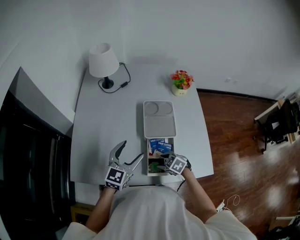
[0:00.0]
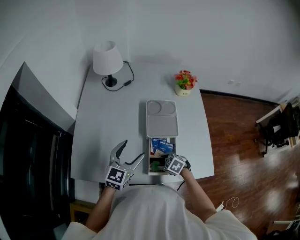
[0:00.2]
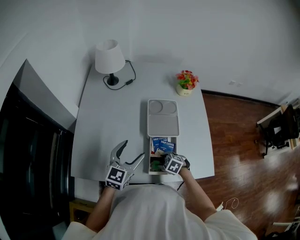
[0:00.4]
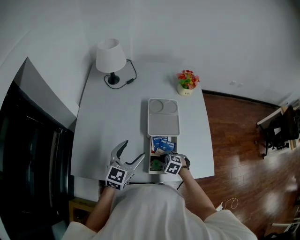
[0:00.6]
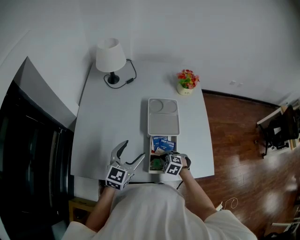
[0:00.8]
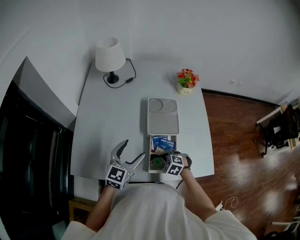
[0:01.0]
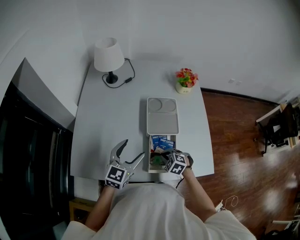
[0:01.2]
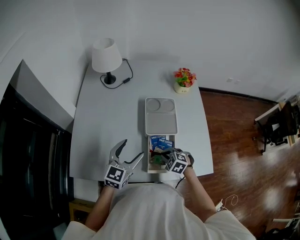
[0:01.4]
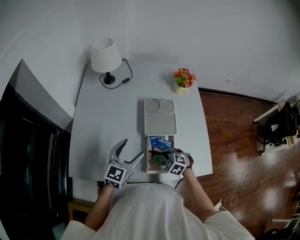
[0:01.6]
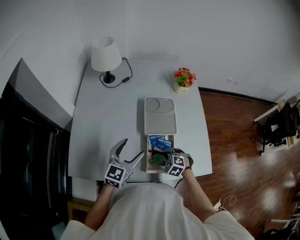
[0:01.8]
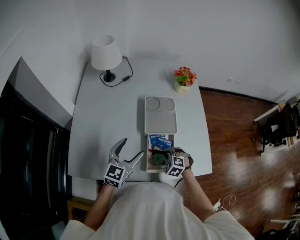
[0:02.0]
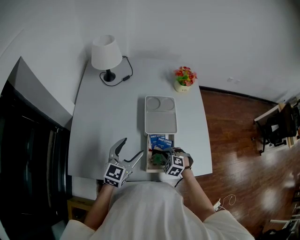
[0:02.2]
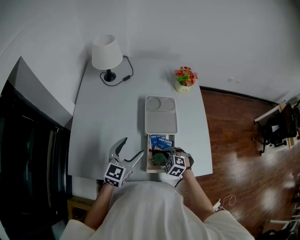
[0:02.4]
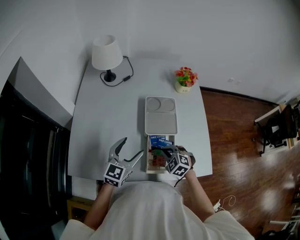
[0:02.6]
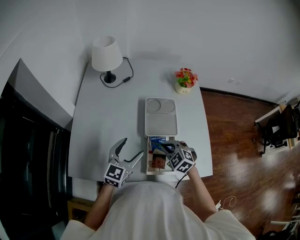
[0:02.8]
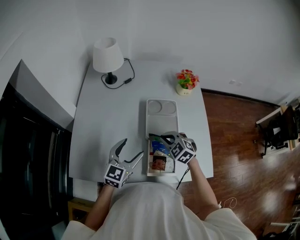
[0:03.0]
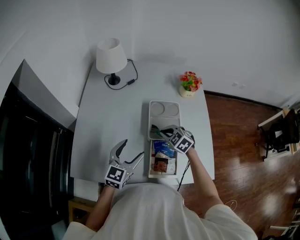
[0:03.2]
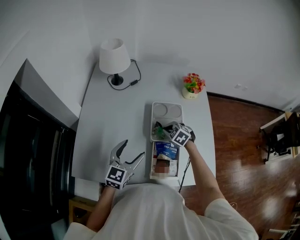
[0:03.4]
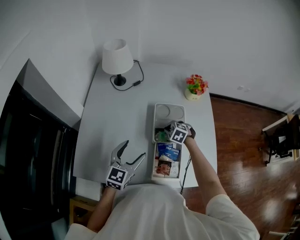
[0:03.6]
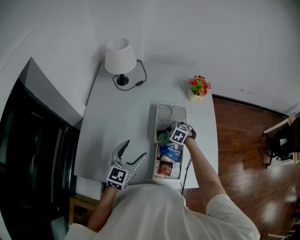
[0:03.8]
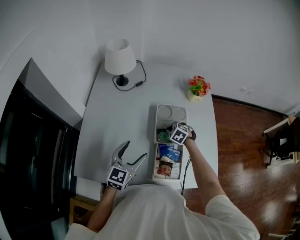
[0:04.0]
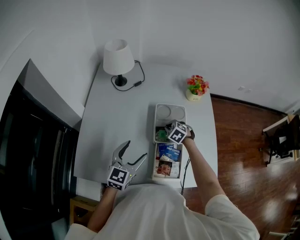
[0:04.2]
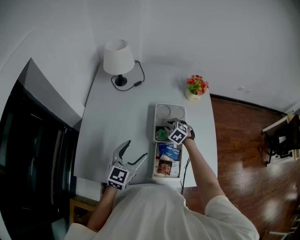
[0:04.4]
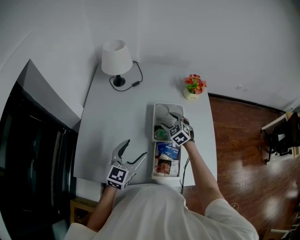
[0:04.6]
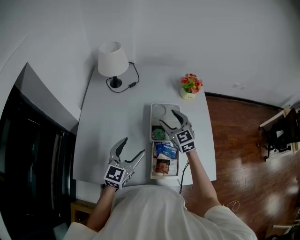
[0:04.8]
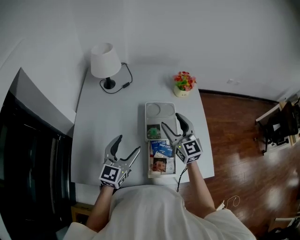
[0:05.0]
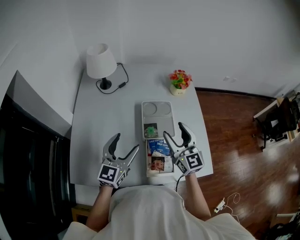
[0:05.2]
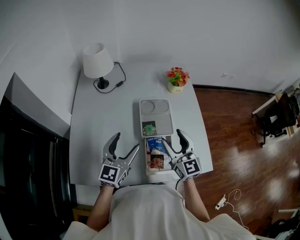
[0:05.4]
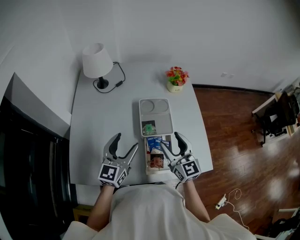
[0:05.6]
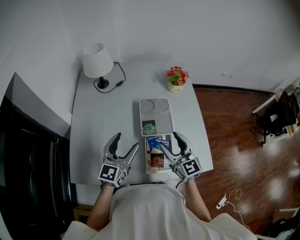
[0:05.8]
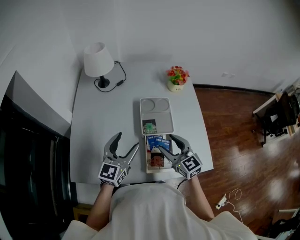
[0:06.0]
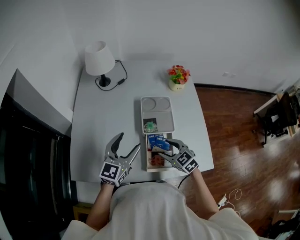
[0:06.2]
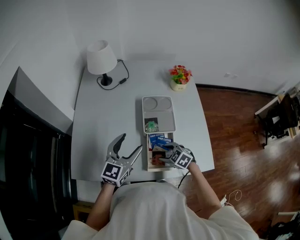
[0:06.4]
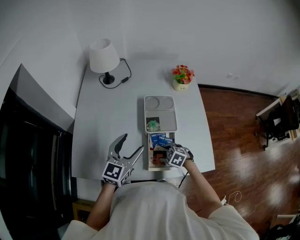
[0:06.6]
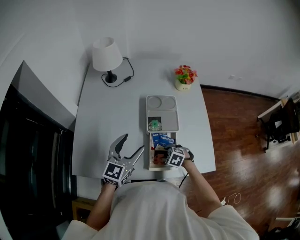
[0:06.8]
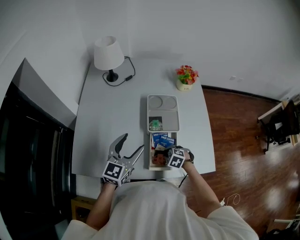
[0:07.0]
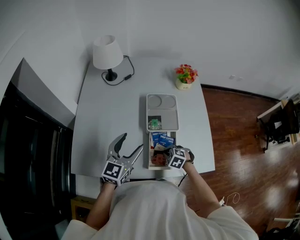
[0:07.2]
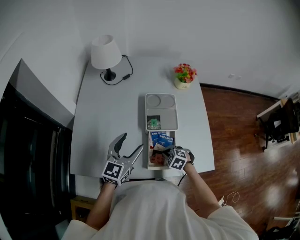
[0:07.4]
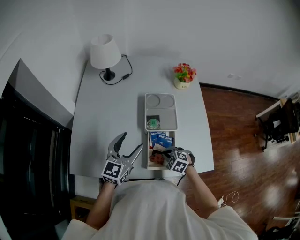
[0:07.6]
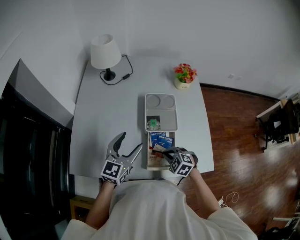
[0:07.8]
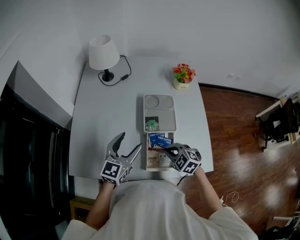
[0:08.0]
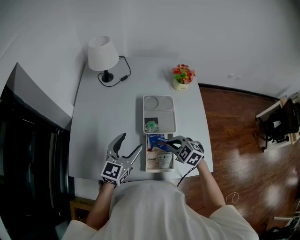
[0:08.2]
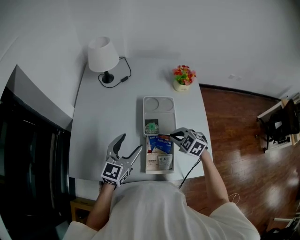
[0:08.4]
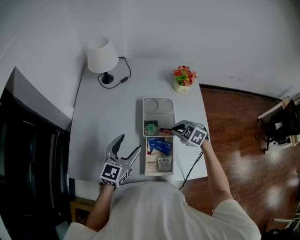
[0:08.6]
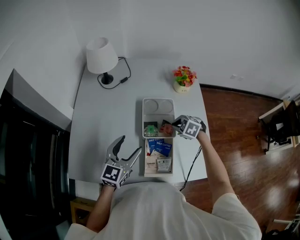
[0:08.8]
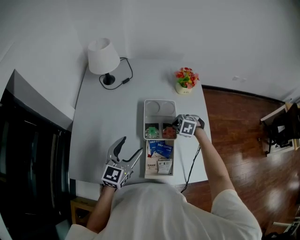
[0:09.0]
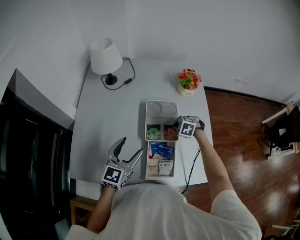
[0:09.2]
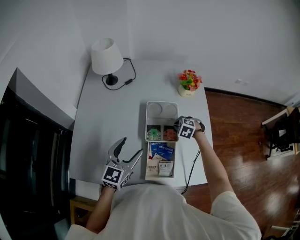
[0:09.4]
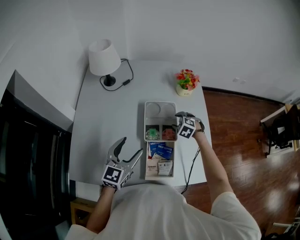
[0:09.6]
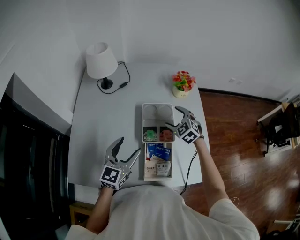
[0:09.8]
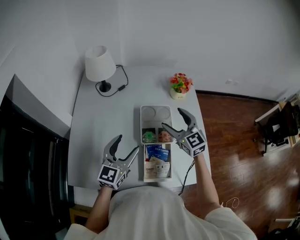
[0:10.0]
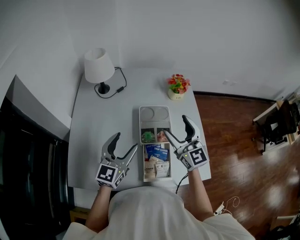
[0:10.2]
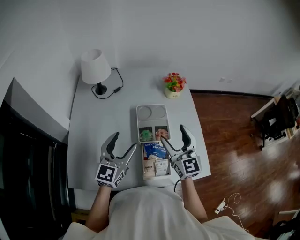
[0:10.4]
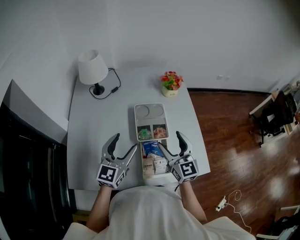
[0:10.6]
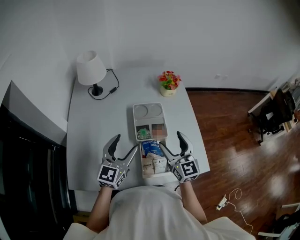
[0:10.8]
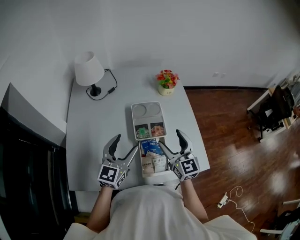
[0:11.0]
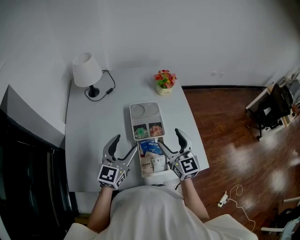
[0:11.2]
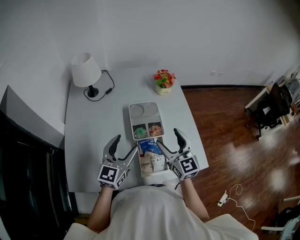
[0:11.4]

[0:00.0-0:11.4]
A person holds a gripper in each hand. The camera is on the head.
0:00.0 to 0:01.4: The right gripper closes up.
0:01.4 to 0:02.8: The right gripper travels upward by approximately 10 cm.
0:02.8 to 0:04.2: The right gripper goes about 20 cm forward and downward.
0:04.2 to 0:05.6: The left gripper shifts about 5 cm upward. The right gripper goes approximately 30 cm upward and backward, tips its fingers upward by some 60 degrees, and opens.
0:05.6 to 0:07.2: The right gripper heads downward, covering about 25 cm, angles its fingers downward, by roughly 70 degrees, and closes.
0:07.2 to 0:08.6: The right gripper goes approximately 20 cm upward, forward and to the right.
0:08.6 to 0:10.0: The right gripper shifts approximately 15 cm upward, tips its fingers upward by approximately 50 degrees, and opens its fingers.
0:10.0 to 0:11.4: The right gripper is displaced backward by approximately 15 cm.

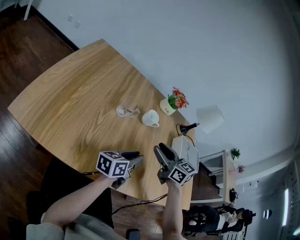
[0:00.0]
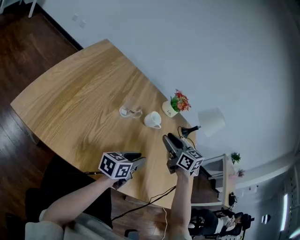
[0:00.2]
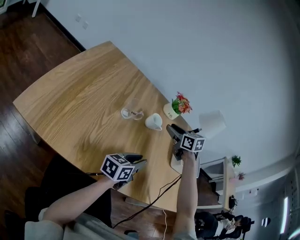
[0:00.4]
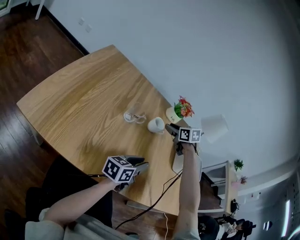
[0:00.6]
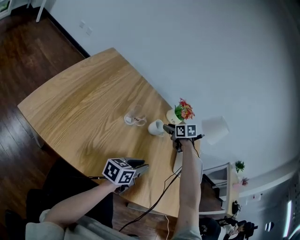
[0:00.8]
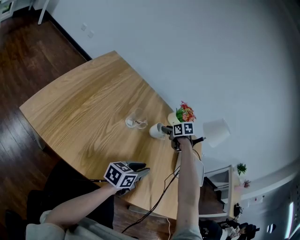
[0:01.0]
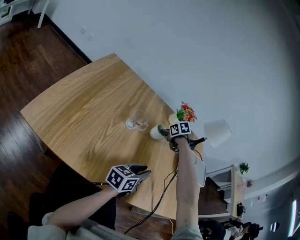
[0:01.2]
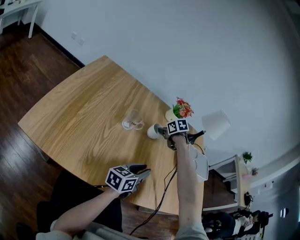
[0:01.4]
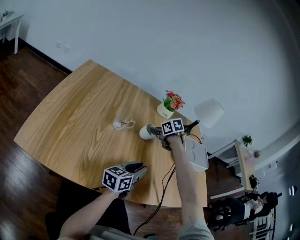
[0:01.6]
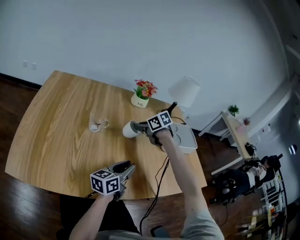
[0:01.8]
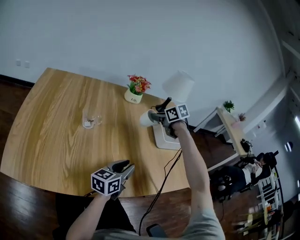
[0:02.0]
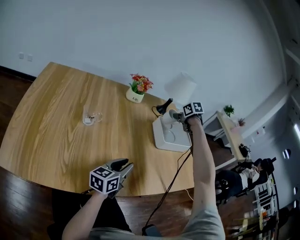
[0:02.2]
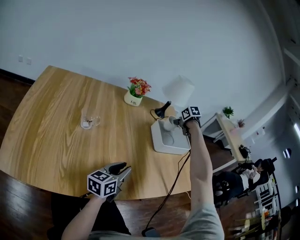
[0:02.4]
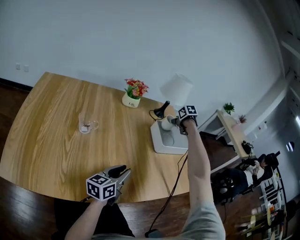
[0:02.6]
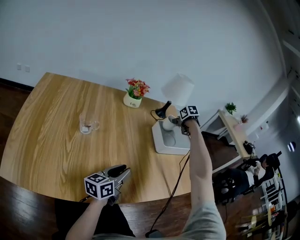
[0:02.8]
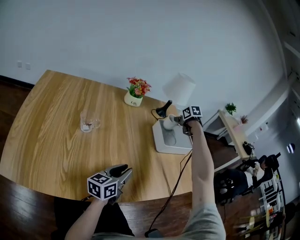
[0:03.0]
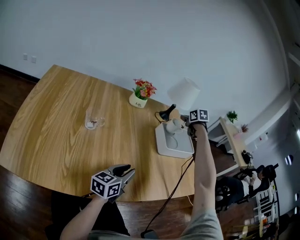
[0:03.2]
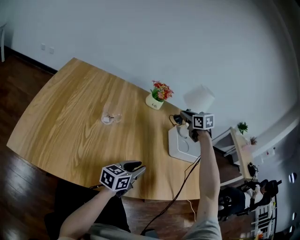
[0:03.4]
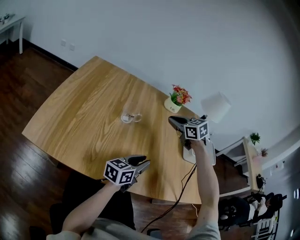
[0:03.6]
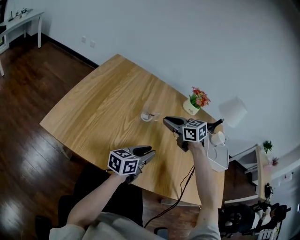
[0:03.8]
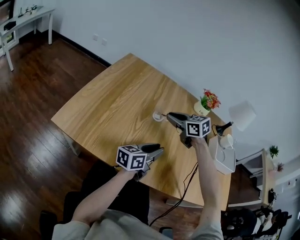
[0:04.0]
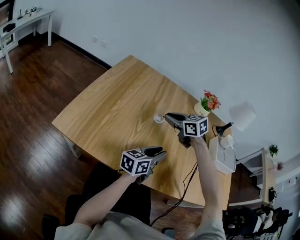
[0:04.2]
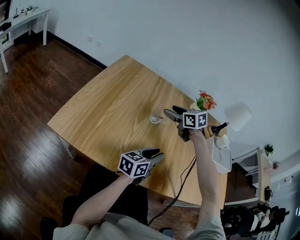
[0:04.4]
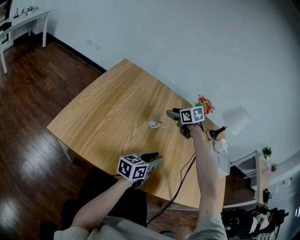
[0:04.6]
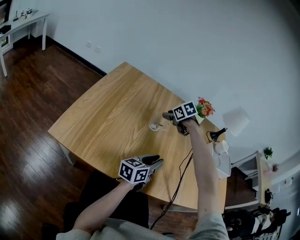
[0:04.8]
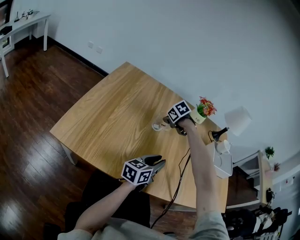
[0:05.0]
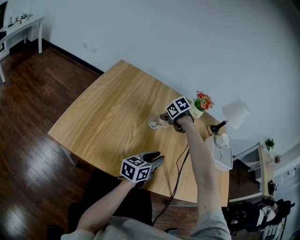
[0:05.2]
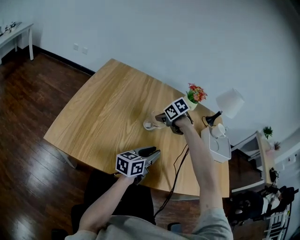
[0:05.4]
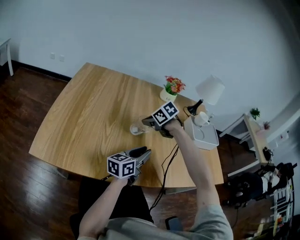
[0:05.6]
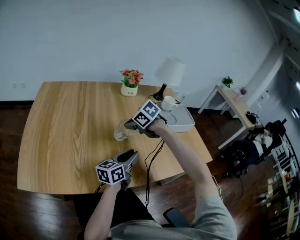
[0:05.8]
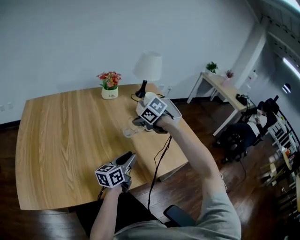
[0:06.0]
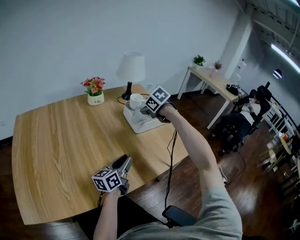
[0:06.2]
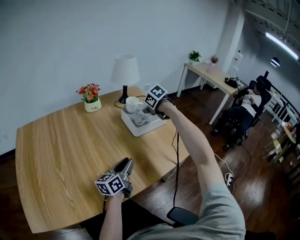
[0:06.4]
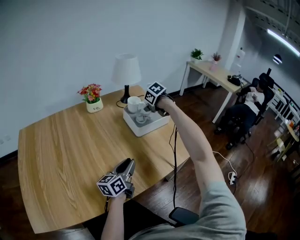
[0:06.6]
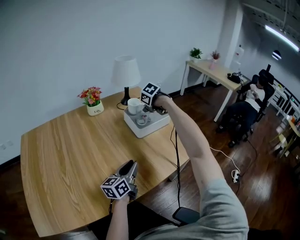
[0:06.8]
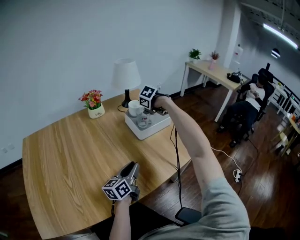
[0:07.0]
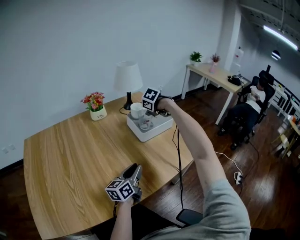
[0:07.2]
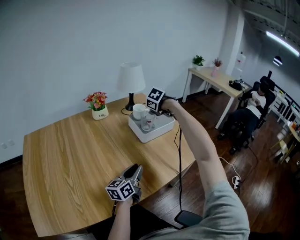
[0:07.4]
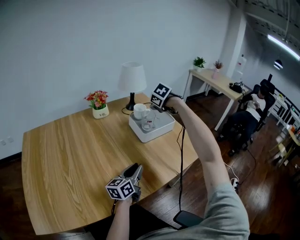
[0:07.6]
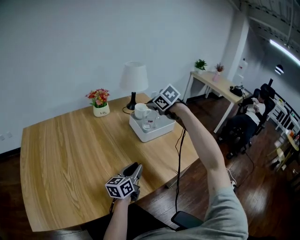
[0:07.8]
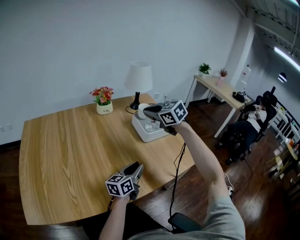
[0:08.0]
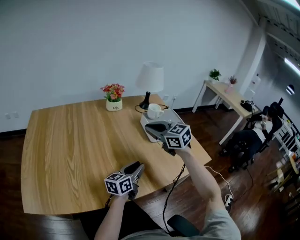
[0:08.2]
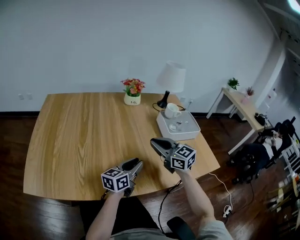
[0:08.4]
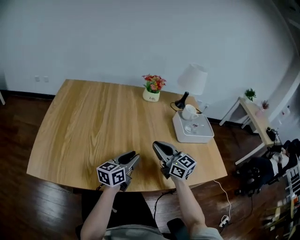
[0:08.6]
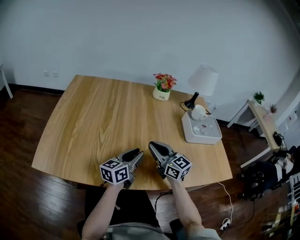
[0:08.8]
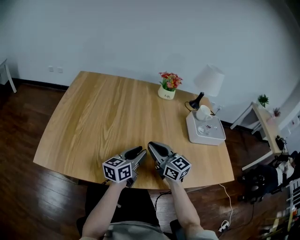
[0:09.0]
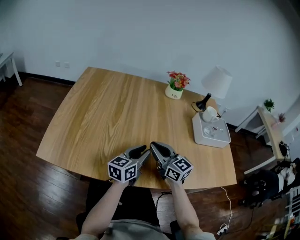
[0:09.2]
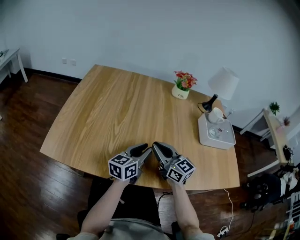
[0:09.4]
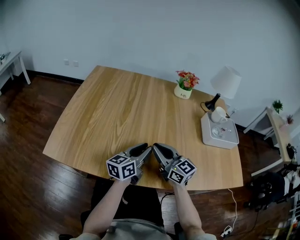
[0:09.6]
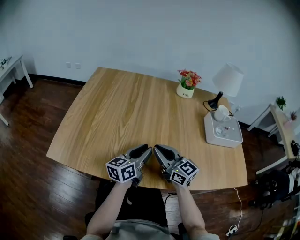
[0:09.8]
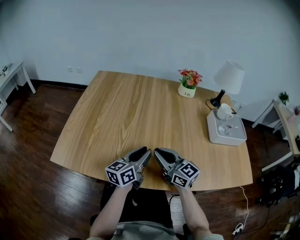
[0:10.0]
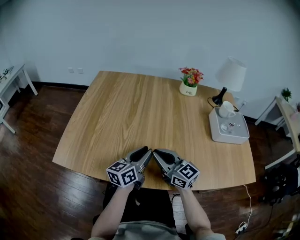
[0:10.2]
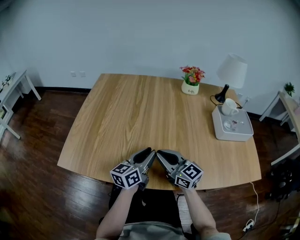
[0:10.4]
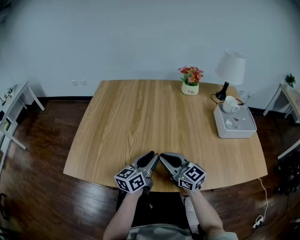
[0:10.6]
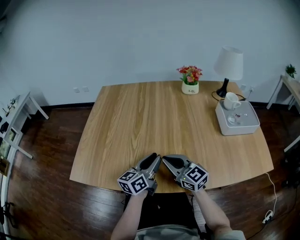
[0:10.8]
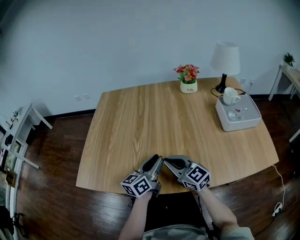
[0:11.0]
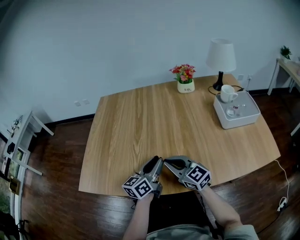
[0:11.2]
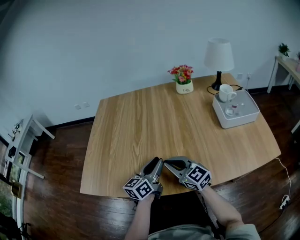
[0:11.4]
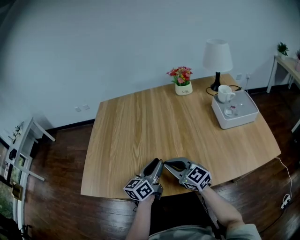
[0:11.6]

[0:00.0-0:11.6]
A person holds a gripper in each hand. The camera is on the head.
0:00.0 to 0:01.4: The right gripper moves forward and downward, roughly 25 cm, tilts its fingers roughly 40 degrees downward, and closes up.
0:01.4 to 0:02.8: The right gripper moves some 35 cm, and rotates approximately 30 degrees.
0:02.8 to 0:04.4: The left gripper moves roughly 10 cm. The right gripper goes upward and returns, roughly 10 cm each way, rotates approximately 60 degrees, and opens.
0:04.4 to 0:05.8: The right gripper travels to the right and backward by approximately 15 cm, swivels approximately 20 degrees, and closes its fingers, while the left gripper travels to the right by some 10 cm.
0:05.8 to 0:07.2: The left gripper shifts by some 10 cm. The right gripper ends up approximately 35 cm from where it was, and swivels about 30 degrees.
0:07.2 to 0:08.8: The right gripper travels upward and back again, about 10 cm each way, and angles its fingers upward, by roughly 60 degrees, while the left gripper changes place by some 15 cm.
0:08.8 to 0:10.2: The two grippers go some 10 cm to the left.
0:10.2 to 0:11.6: The grippers move only a little.

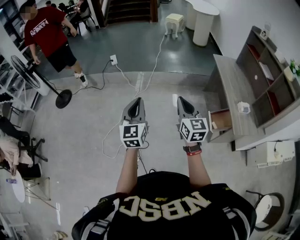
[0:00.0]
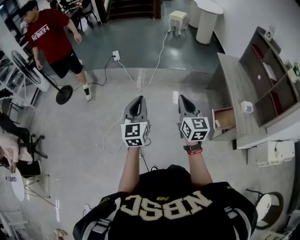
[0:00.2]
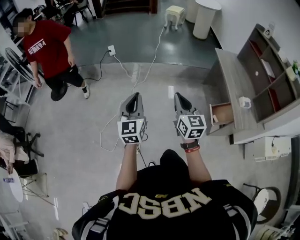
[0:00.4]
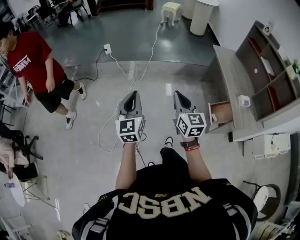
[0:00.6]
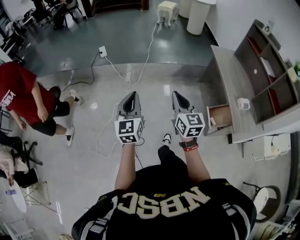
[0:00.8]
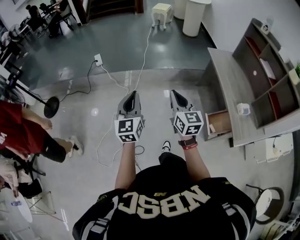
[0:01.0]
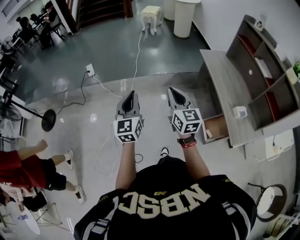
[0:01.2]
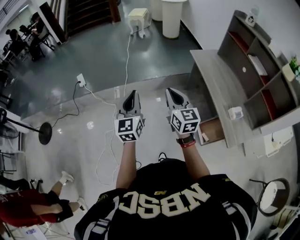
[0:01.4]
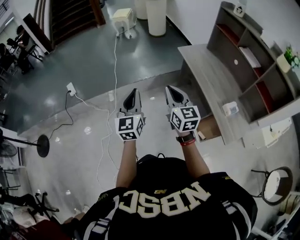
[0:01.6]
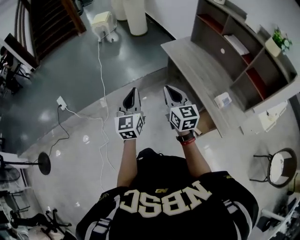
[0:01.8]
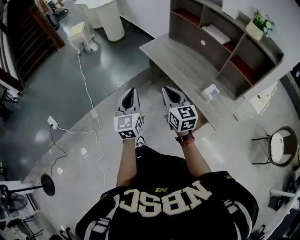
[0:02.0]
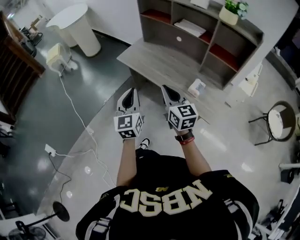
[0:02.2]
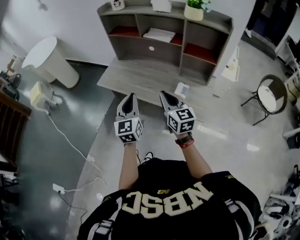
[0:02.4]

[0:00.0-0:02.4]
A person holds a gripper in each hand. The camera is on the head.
0:00.0 to 0:01.2: The grippers both shift forward by some 25 cm.
0:01.2 to 0:02.4: Both grippers are carried some 50 cm. The left gripper rotates about 60 degrees. Meanwhile the right gripper turns by about 50 degrees.
